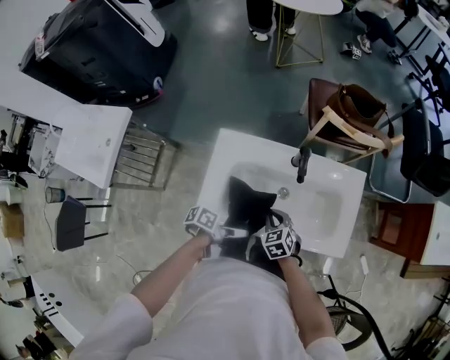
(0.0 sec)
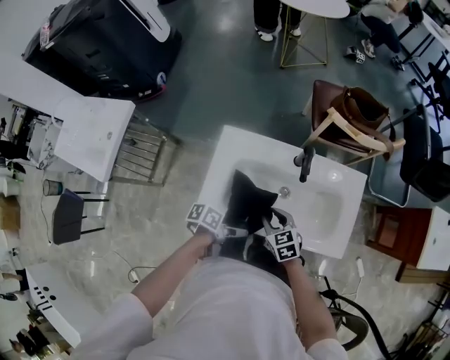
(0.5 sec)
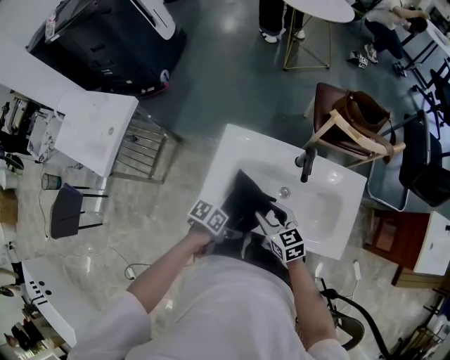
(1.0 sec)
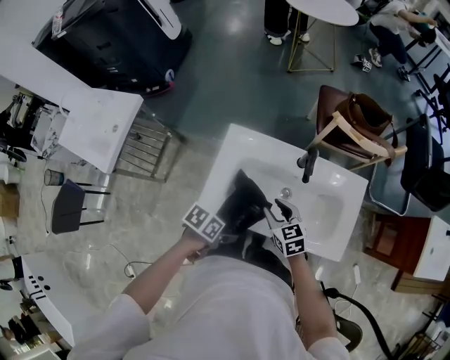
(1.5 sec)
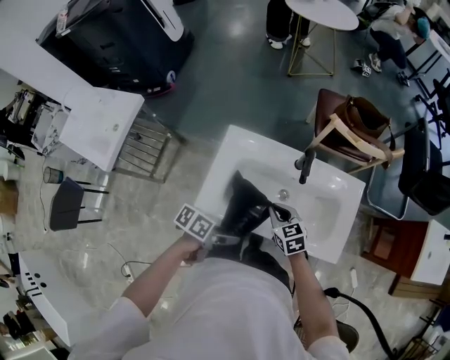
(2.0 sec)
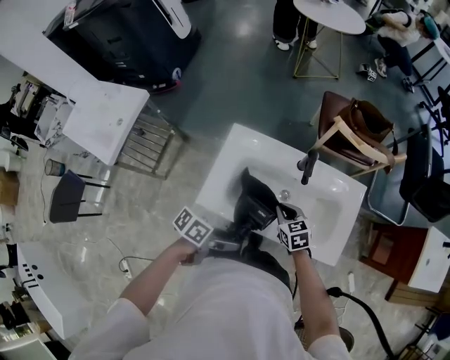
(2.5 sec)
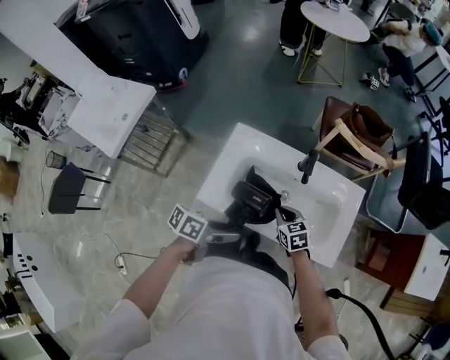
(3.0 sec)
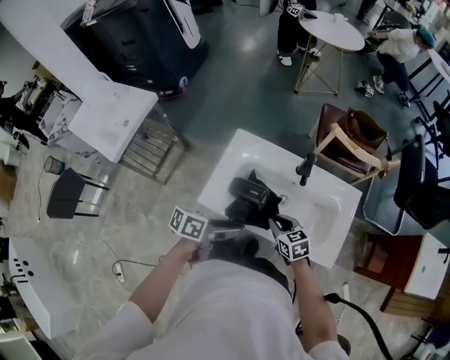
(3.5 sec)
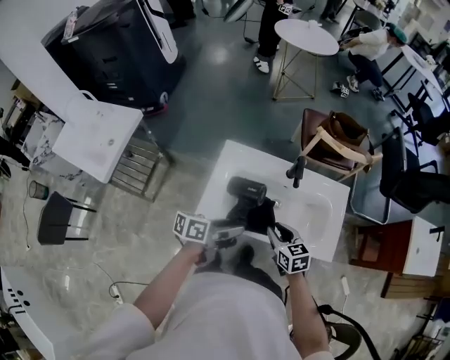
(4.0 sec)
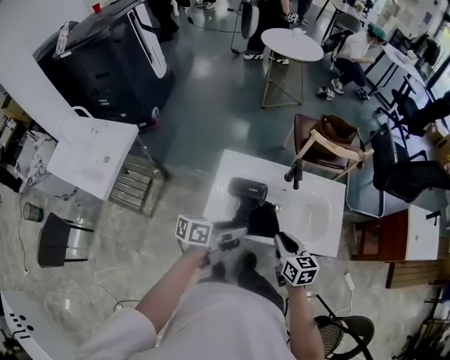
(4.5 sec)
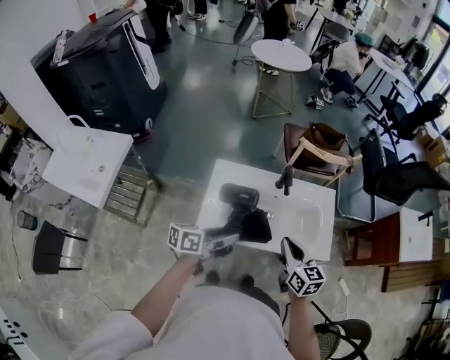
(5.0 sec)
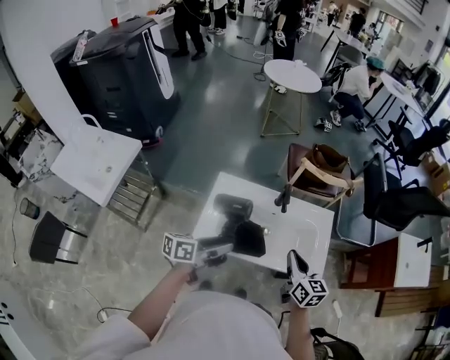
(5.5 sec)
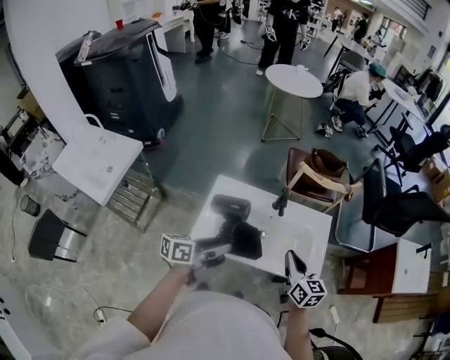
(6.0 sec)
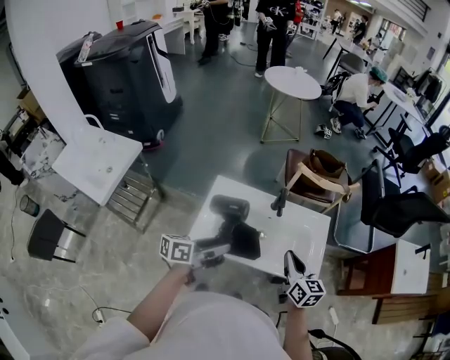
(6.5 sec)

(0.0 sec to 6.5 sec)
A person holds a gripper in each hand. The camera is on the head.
0.0 sec - 2.0 sec: Both grippers move upward, approximately 5 cm. The left gripper changes its angle by roughly 20 degrees. Meanwhile the right gripper opens and closes again.
2.0 sec - 4.5 sec: The left gripper travels upward by approximately 10 cm, and changes its angle by roughly 30 degrees. Meanwhile the right gripper moves about 15 cm, and turns by roughly 30 degrees.
4.5 sec - 6.5 sec: The right gripper travels to the right and upward by some 15 cm; the left gripper moves upward, roughly 5 cm.

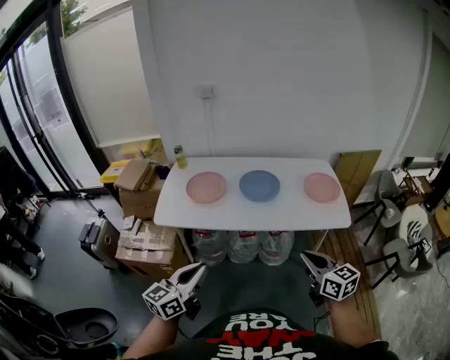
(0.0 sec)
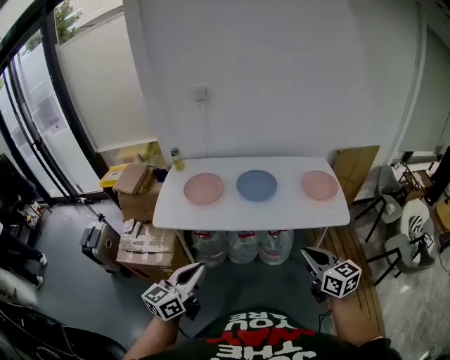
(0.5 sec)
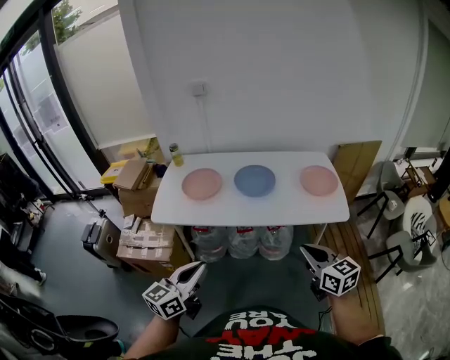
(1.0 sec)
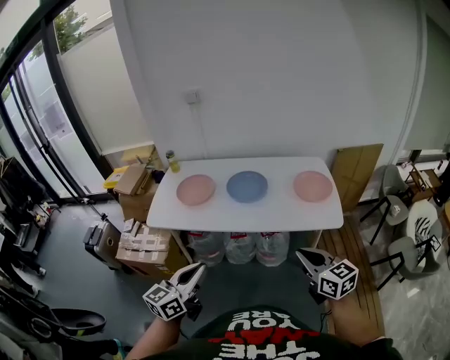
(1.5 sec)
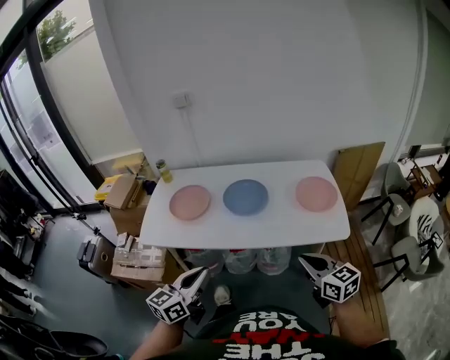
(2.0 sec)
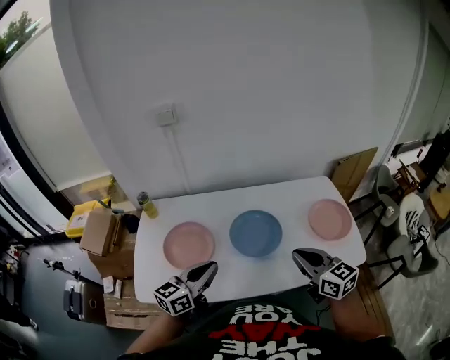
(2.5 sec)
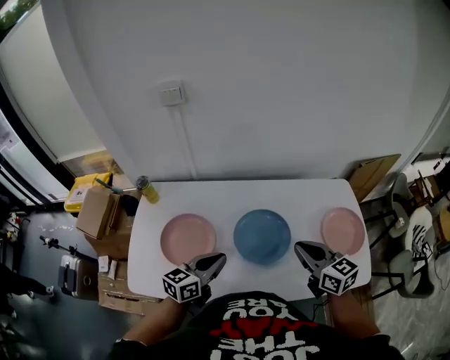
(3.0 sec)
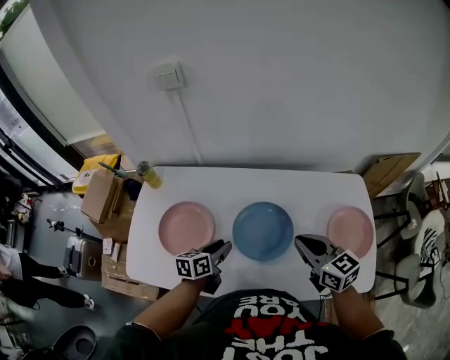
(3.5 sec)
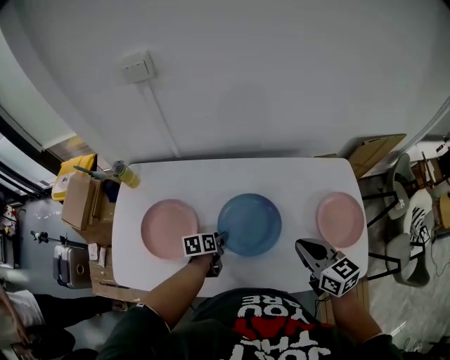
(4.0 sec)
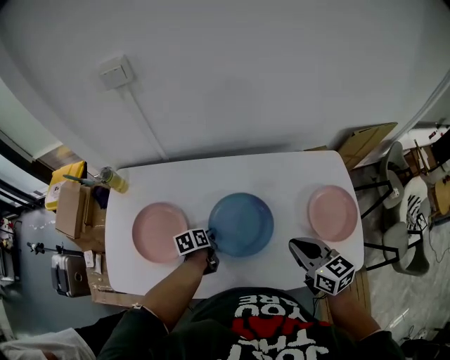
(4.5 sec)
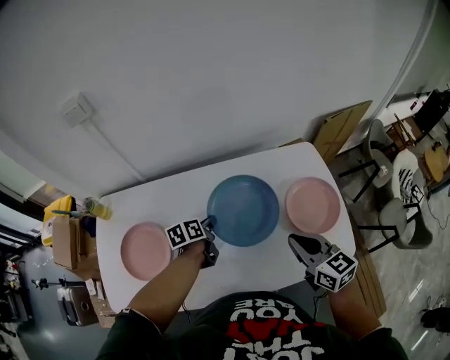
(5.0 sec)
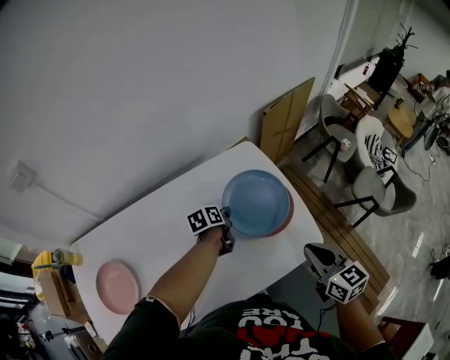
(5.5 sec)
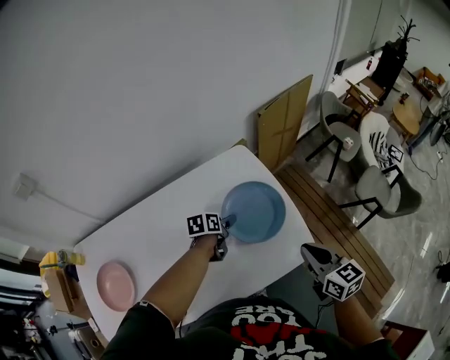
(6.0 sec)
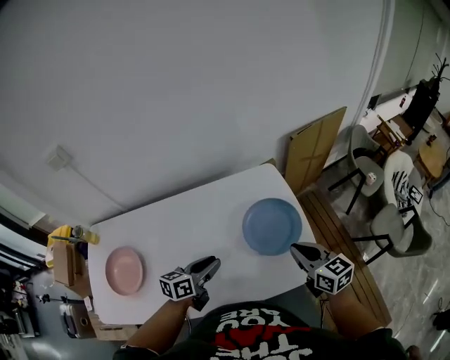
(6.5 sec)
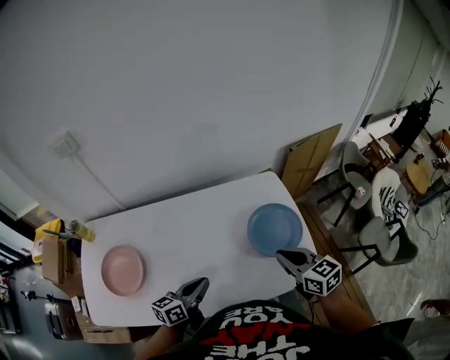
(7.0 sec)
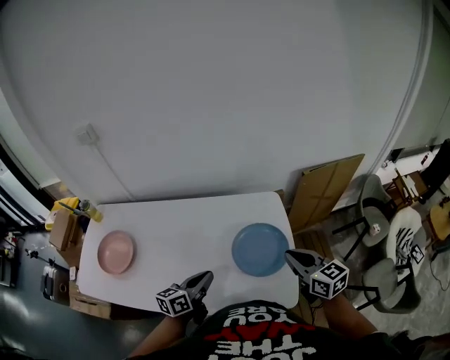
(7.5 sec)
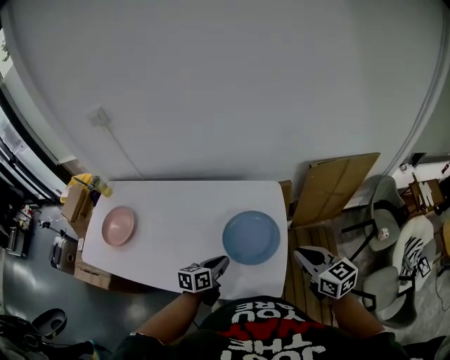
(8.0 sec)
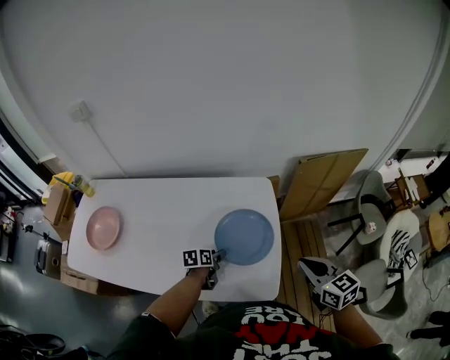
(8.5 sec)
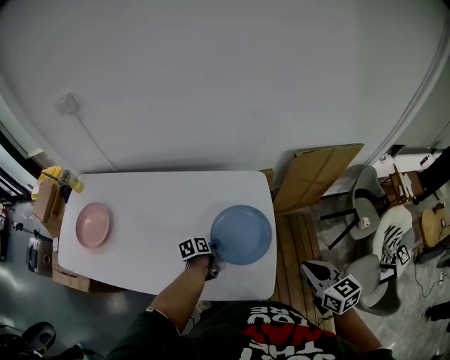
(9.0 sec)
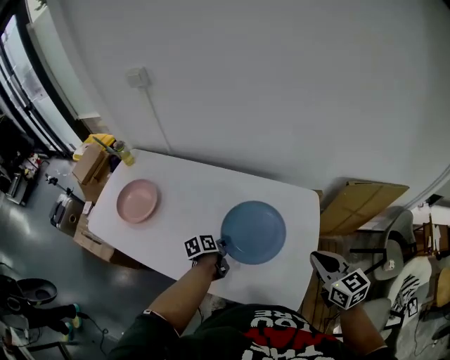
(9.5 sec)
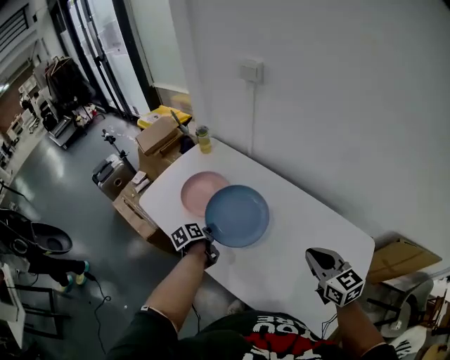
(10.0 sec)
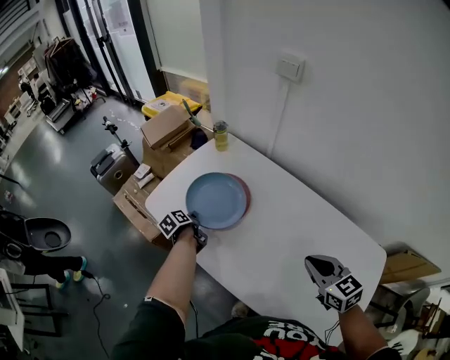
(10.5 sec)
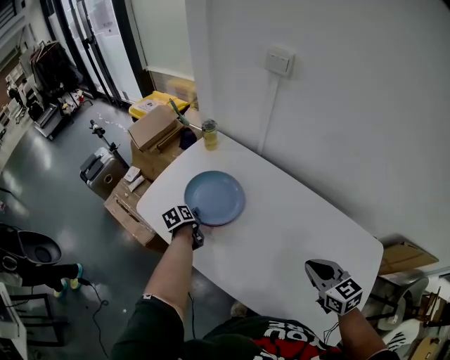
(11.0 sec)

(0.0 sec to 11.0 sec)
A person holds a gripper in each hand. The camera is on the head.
0.0 sec - 2.0 sec: The grippers both shift to the right and forward by roughly 15 cm.
2.0 sec - 3.5 sec: The left gripper goes some 40 cm forward and downward, swivels some 30 degrees, and opens up; the right gripper travels forward by approximately 35 cm.
3.5 sec - 5.5 sec: The right gripper changes place by about 35 cm, and changes its angle by some 40 degrees. The left gripper changes place by approximately 40 cm, and rotates roughly 20 degrees.
5.5 sec - 7.5 sec: The right gripper ends up about 15 cm from where it was, and changes its angle by roughly 30 degrees, while the left gripper moves approximately 25 cm, rotates roughly 30 degrees, and opens and closes again.
7.5 sec - 9.0 sec: The left gripper moves downward, to the right and forward, some 25 cm, tips its fingers downward by some 30 degrees, and opens, then closes again. Meanwhile the right gripper moves to the right and backward, approximately 15 cm.
9.0 sec - 11.0 sec: Both grippers are carried about 60 cm. The right gripper changes its angle by roughly 40 degrees; the left gripper changes its angle by approximately 50 degrees.

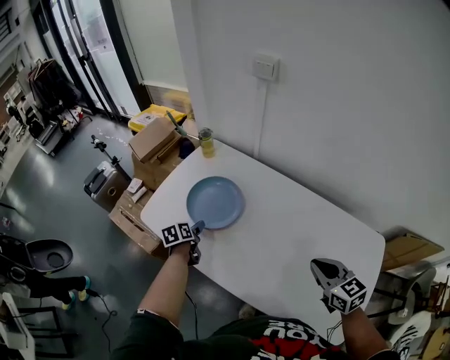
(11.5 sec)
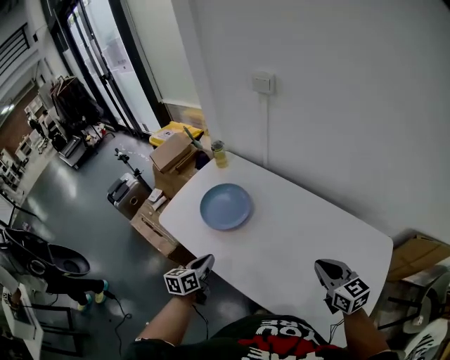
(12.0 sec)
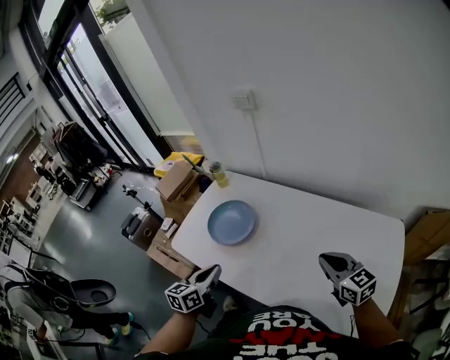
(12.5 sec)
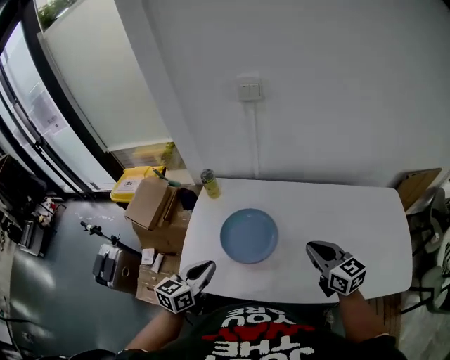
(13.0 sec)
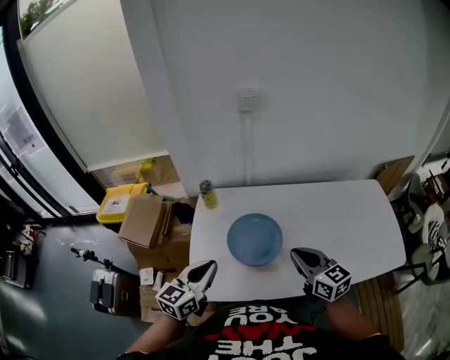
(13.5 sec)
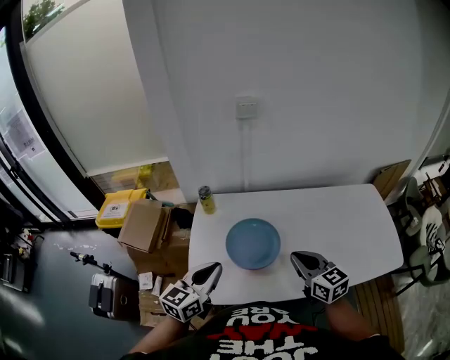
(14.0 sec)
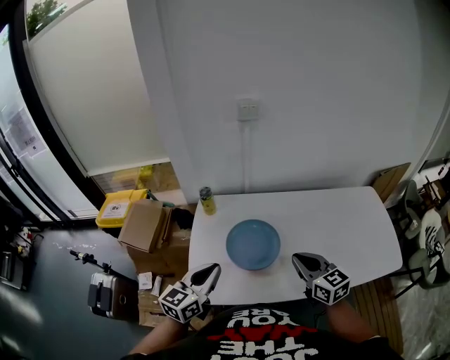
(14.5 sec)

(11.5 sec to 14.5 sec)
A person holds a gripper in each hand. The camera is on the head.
11.5 sec - 13.0 sec: The right gripper ends up about 20 cm from where it was, and rotates about 30 degrees; the left gripper goes roughly 15 cm upward, changes its angle by about 60 degrees, and closes up.
13.0 sec - 14.5 sec: The left gripper shifts approximately 5 cm upward. Meanwhile the right gripper goes roughly 10 cm to the left and backward.

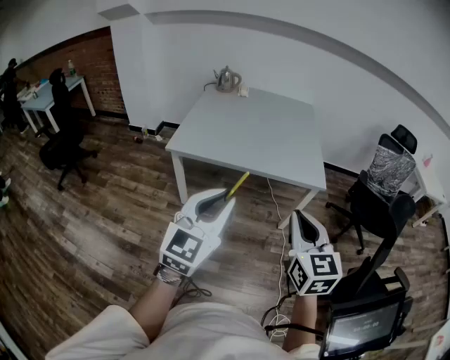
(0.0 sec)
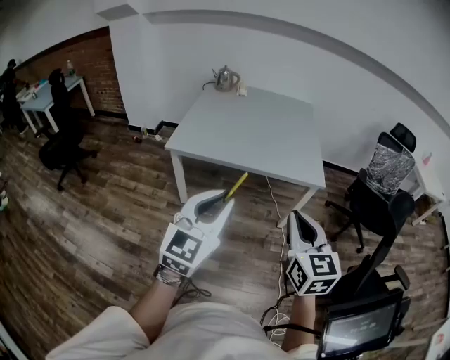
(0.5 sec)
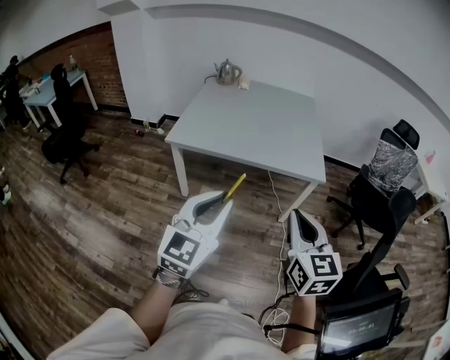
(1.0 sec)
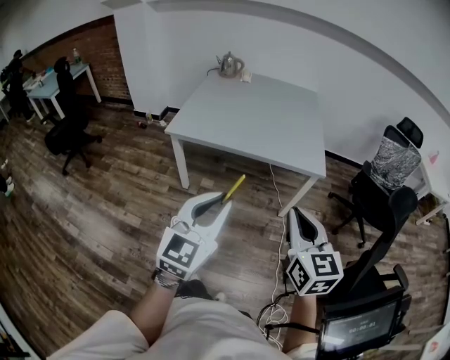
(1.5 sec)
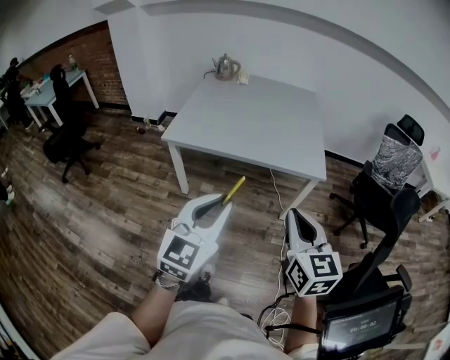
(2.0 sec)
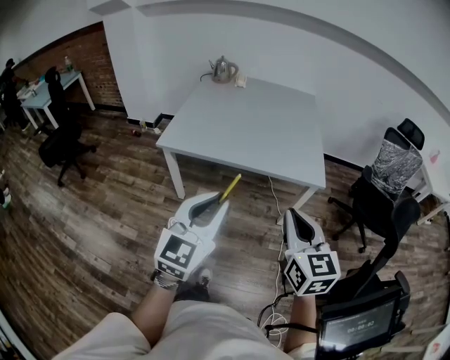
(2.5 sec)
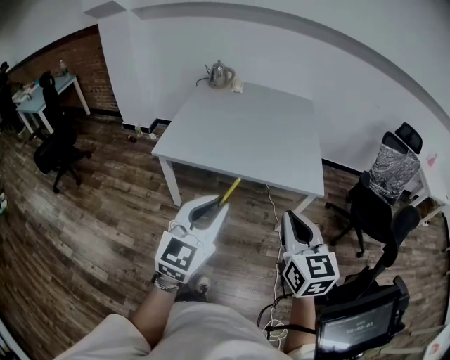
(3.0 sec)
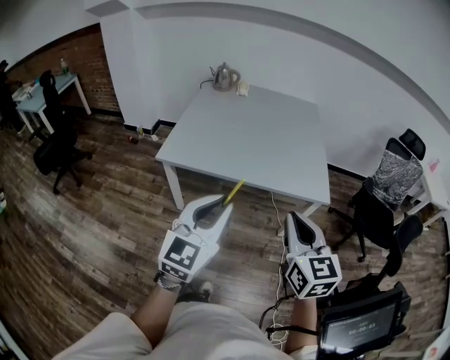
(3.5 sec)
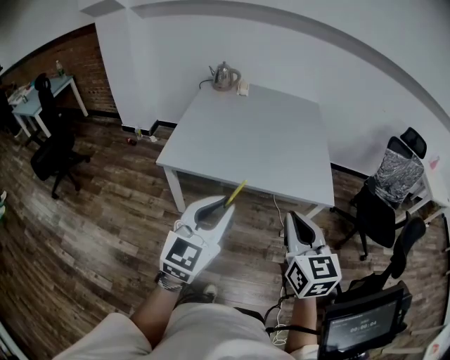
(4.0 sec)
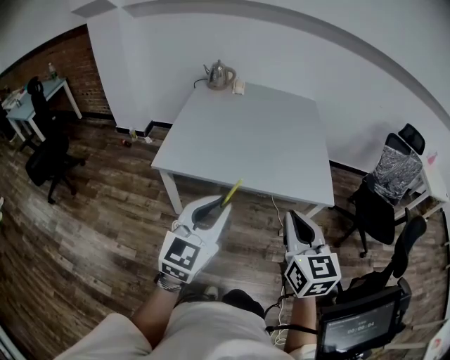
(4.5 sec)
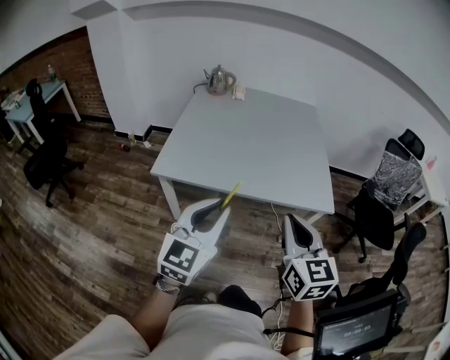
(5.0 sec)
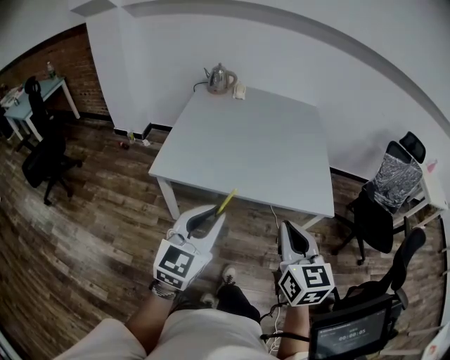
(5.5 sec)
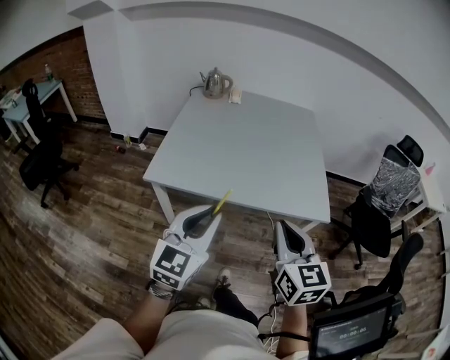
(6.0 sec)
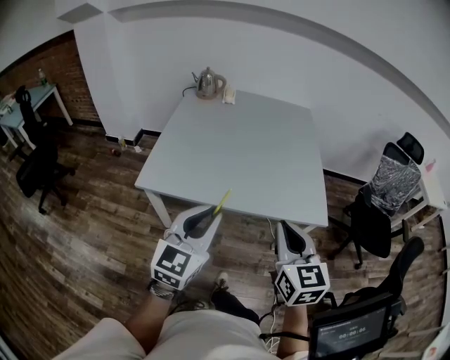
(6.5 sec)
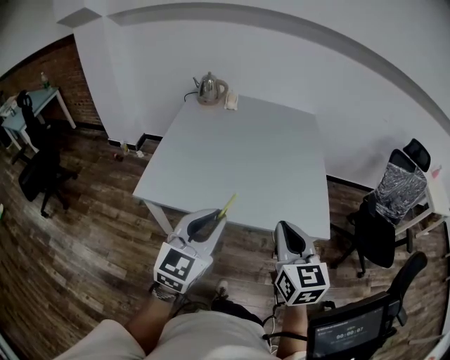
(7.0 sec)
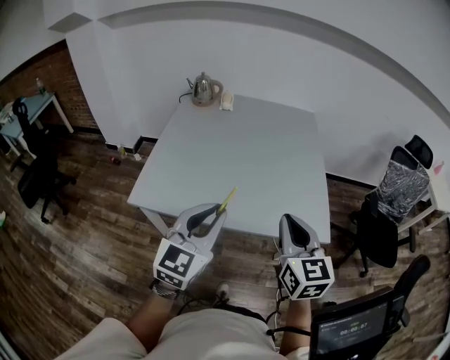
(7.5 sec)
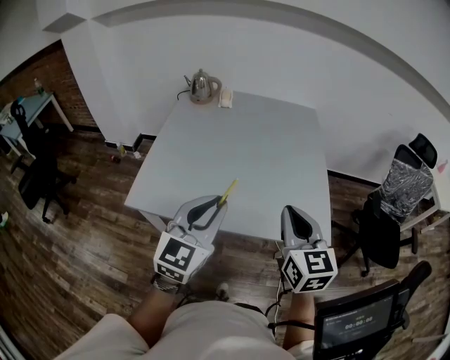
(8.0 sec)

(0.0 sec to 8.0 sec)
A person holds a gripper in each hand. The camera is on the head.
0.0 sec - 2.0 sec: The grippers make only small movements.
2.0 sec - 4.0 sec: The grippers both shift forward and to the left by roughly 15 cm.
4.0 sec - 6.0 sec: Both grippers move forward, approximately 5 cm.
6.0 sec - 8.0 sec: Both grippers travel together forward, roughly 15 cm.
